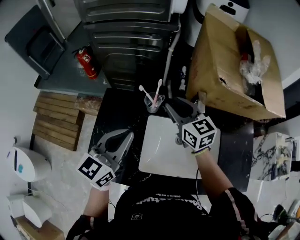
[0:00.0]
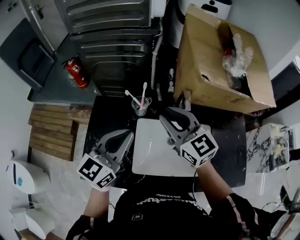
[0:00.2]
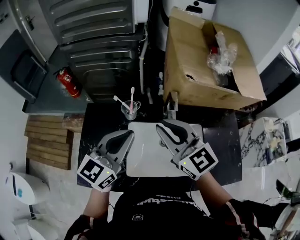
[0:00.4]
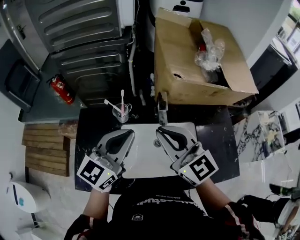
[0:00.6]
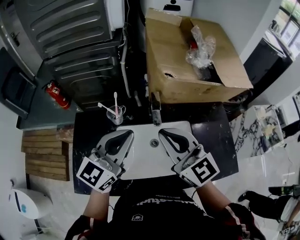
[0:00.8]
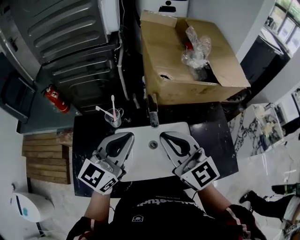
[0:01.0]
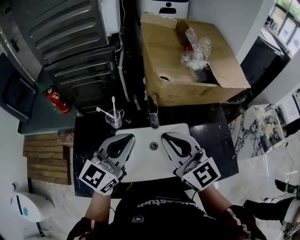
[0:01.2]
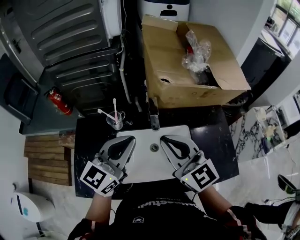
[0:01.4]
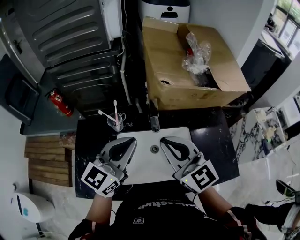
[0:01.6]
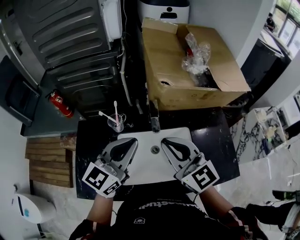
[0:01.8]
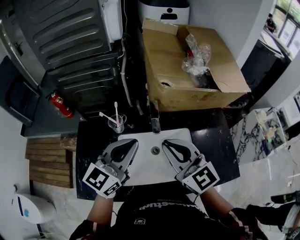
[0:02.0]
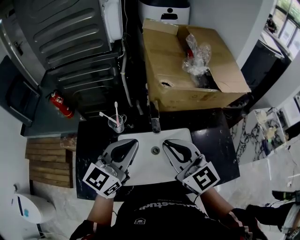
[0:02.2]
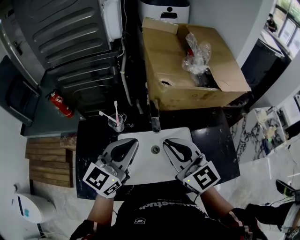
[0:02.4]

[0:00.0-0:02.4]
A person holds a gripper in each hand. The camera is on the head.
0:00.0 to 0:01.2: The left gripper shifts about 15 cm to the right, and changes its angle by roughly 20 degrees. Meanwhile the right gripper shifts approximately 25 cm backward, to the right and upward, and closes.
0:01.2 to 0:02.4: The grippers stay close to where they were, moving slightly.

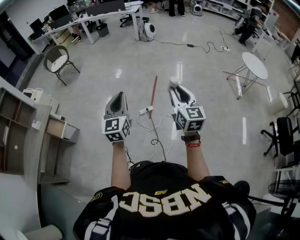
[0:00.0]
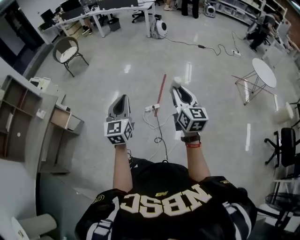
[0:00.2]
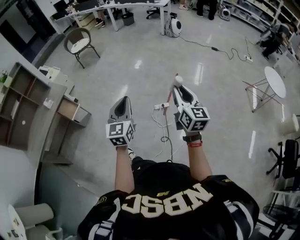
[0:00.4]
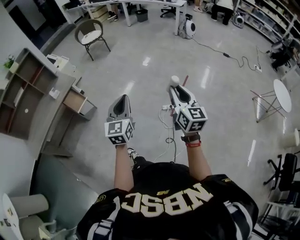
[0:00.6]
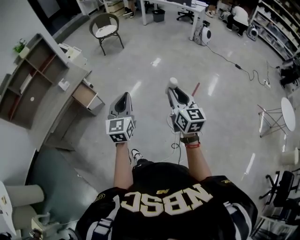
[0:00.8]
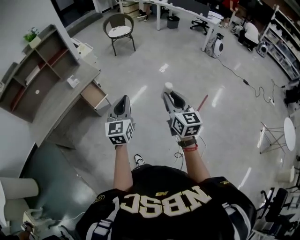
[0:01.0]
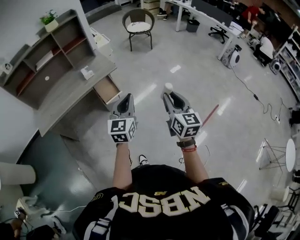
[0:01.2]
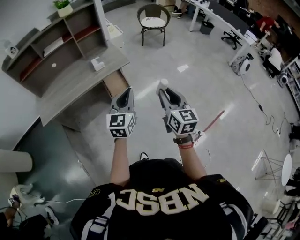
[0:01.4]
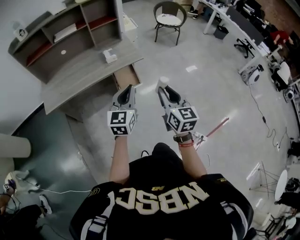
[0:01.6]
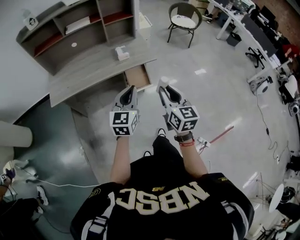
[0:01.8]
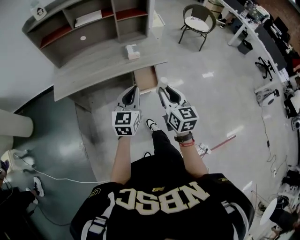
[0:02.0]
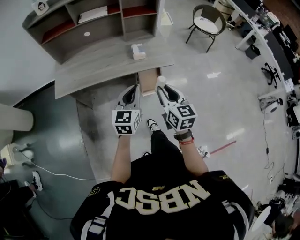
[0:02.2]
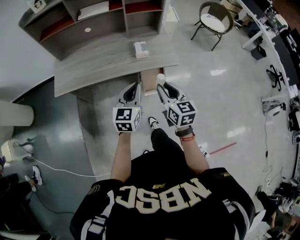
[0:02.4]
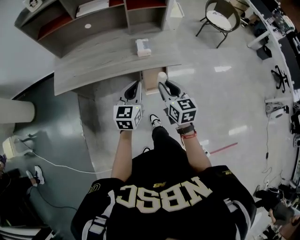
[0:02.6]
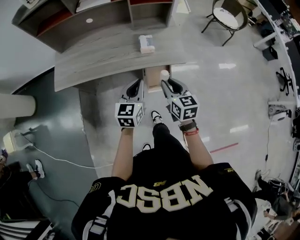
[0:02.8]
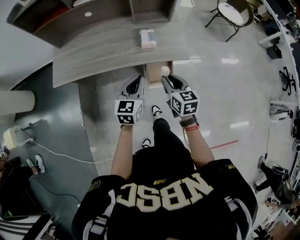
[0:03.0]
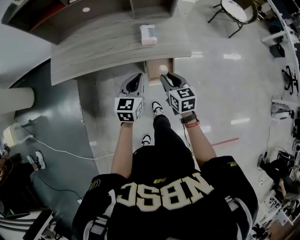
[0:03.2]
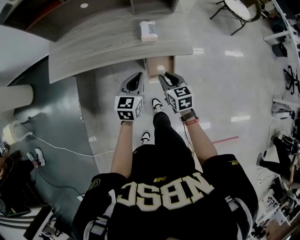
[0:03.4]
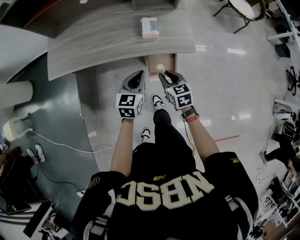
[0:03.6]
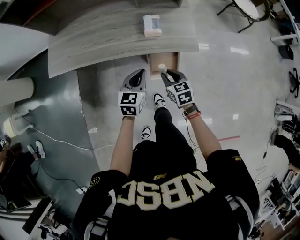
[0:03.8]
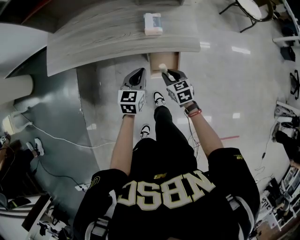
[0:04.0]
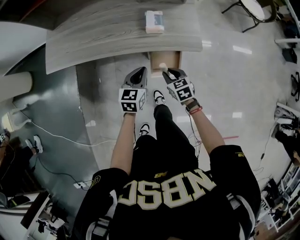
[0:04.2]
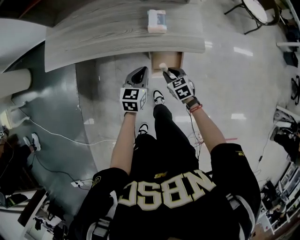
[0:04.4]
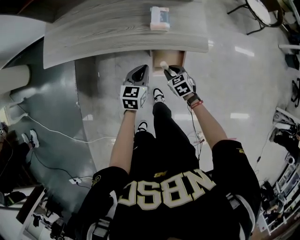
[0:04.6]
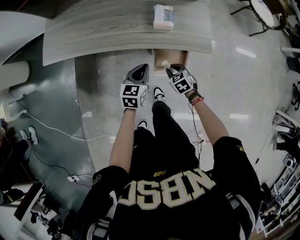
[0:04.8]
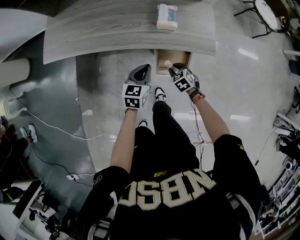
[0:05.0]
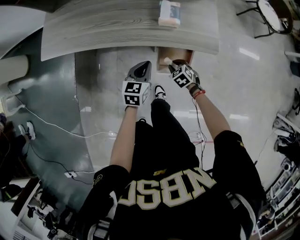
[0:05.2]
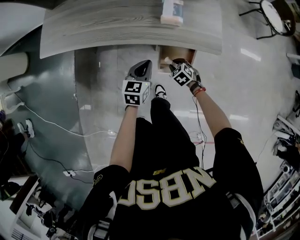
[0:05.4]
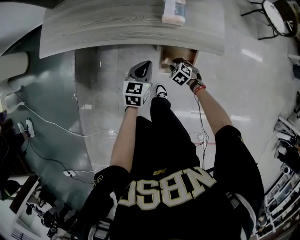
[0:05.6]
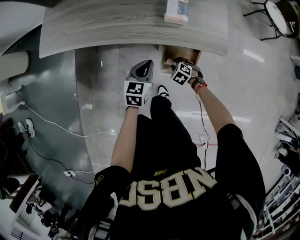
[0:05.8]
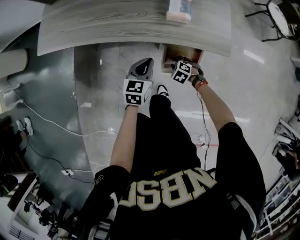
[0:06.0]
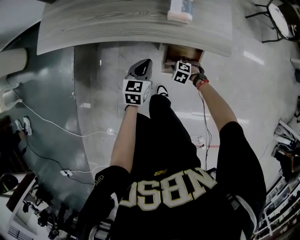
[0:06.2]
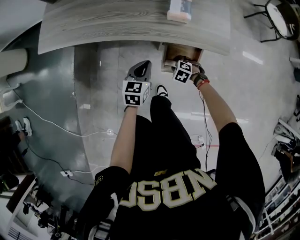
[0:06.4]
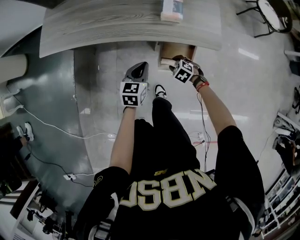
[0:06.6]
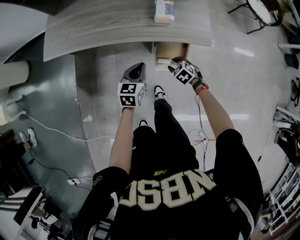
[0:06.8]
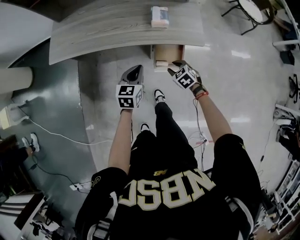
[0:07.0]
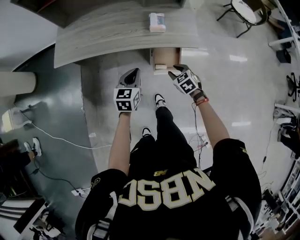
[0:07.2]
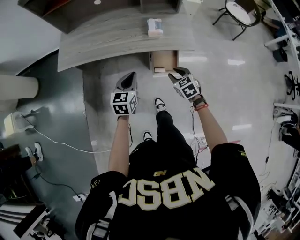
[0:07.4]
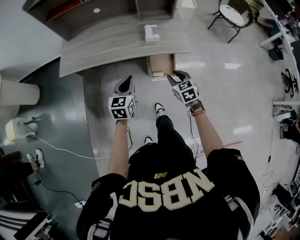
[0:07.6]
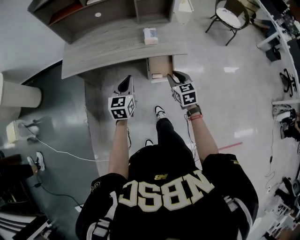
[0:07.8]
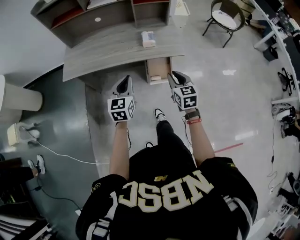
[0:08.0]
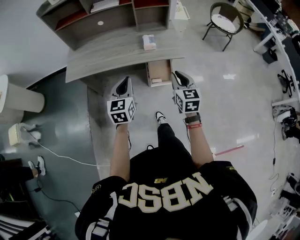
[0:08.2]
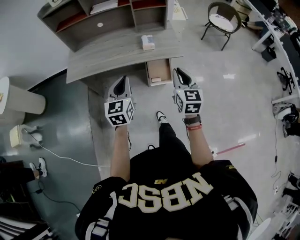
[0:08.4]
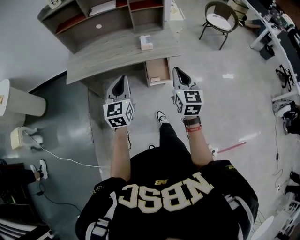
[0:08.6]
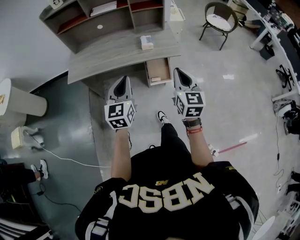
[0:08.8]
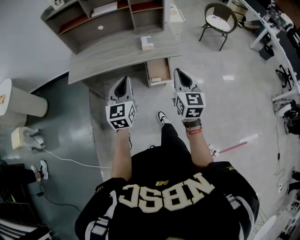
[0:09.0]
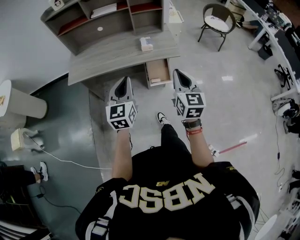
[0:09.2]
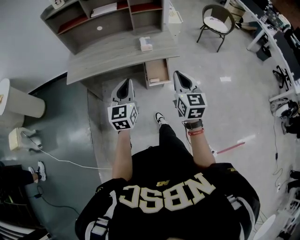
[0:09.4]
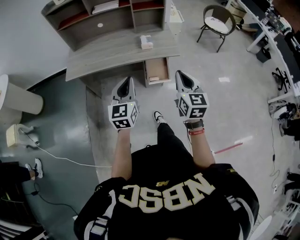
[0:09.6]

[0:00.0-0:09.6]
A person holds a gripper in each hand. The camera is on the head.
0:00.0 to 0:01.6: Both grippers are carried about 60 cm. The left gripper swivels roughly 40 degrees. Meanwhile the right gripper changes its angle by about 50 degrees.
0:01.6 to 0:03.2: Both grippers move forward and downward, some 35 cm. The right gripper turns by some 40 degrees. Meanwhile the left gripper turns by some 30 degrees.
0:03.2 to 0:04.8: The left gripper is displaced downward by approximately 15 cm. The right gripper goes approximately 25 cm downward, and swivels about 40 degrees.
0:04.8 to 0:06.4: The right gripper moves downward, some 15 cm, and swivels about 40 degrees; the left gripper goes roughly 10 cm downward.
0:06.4 to 0:08.0: The grippers both shift upward by roughly 35 cm. The left gripper rotates roughly 20 degrees. The right gripper angles its fingers upward, by about 50 degrees.
0:08.0 to 0:09.6: The right gripper shifts about 15 cm upward and backward, while the left gripper goes some 15 cm backward and upward.

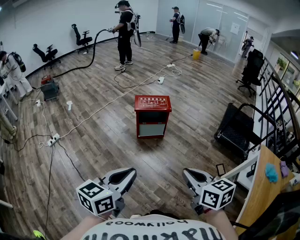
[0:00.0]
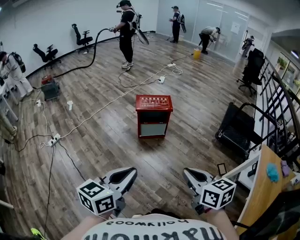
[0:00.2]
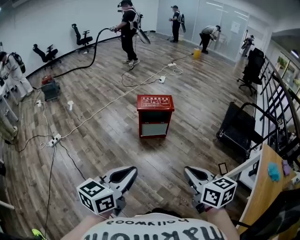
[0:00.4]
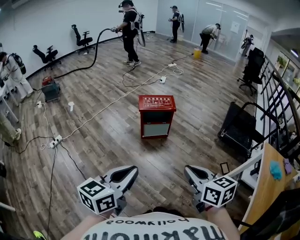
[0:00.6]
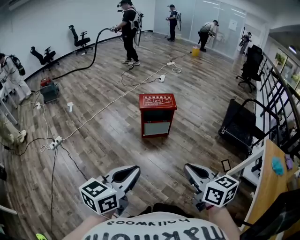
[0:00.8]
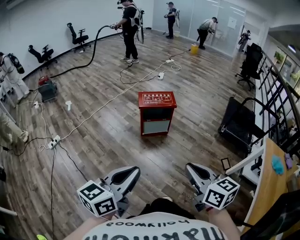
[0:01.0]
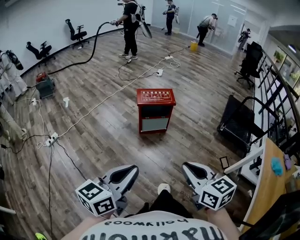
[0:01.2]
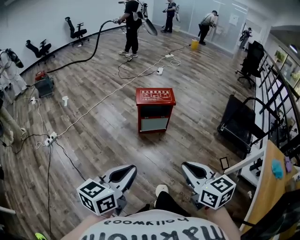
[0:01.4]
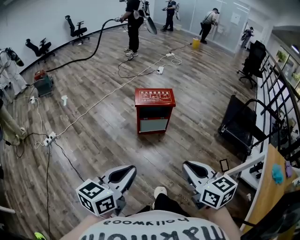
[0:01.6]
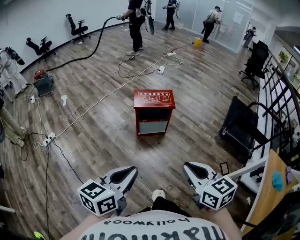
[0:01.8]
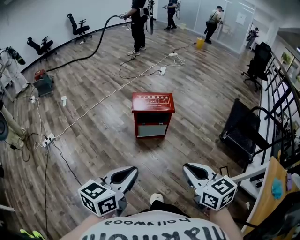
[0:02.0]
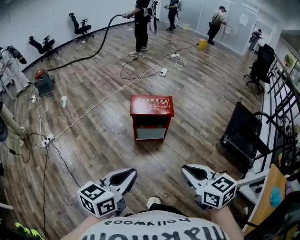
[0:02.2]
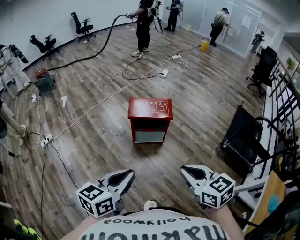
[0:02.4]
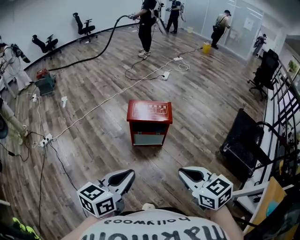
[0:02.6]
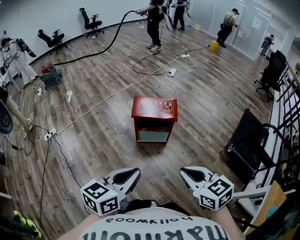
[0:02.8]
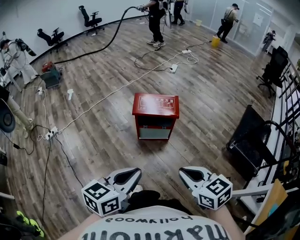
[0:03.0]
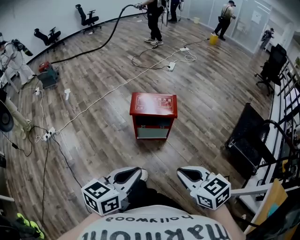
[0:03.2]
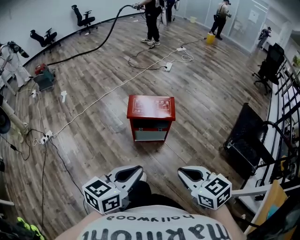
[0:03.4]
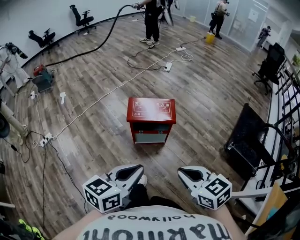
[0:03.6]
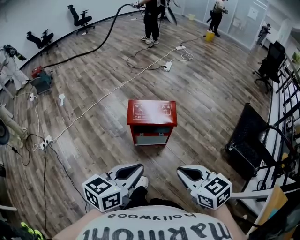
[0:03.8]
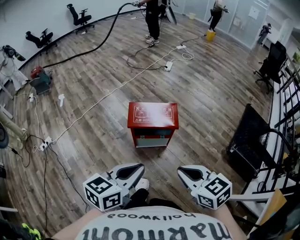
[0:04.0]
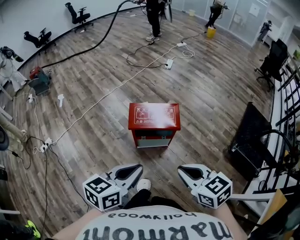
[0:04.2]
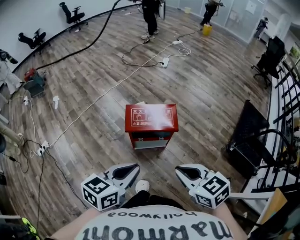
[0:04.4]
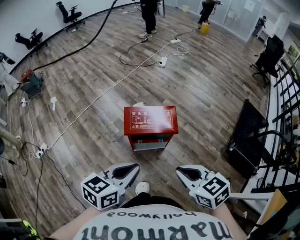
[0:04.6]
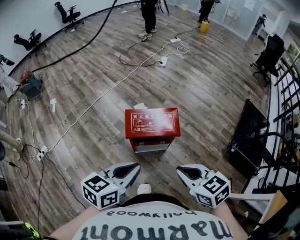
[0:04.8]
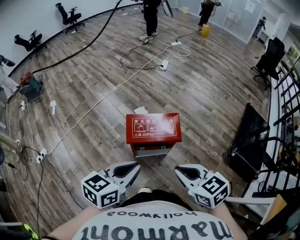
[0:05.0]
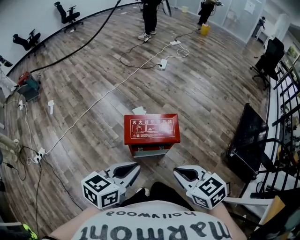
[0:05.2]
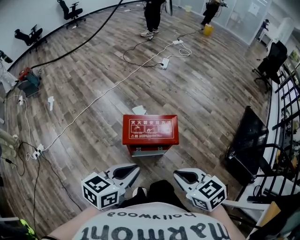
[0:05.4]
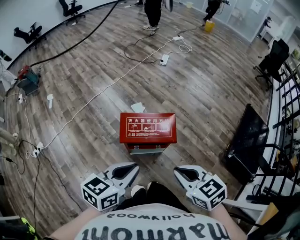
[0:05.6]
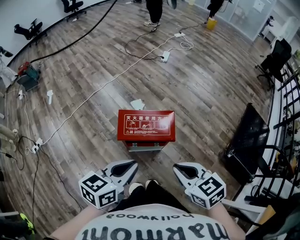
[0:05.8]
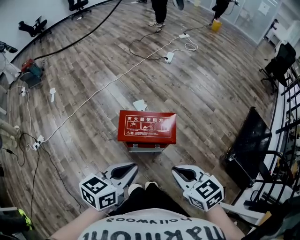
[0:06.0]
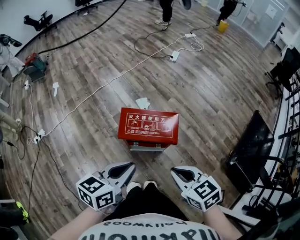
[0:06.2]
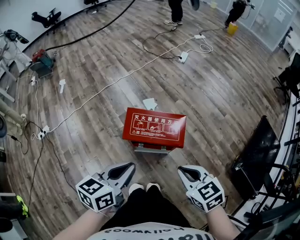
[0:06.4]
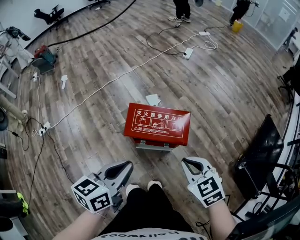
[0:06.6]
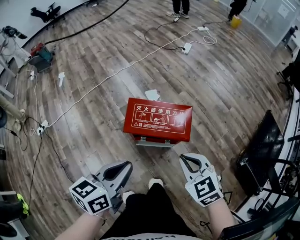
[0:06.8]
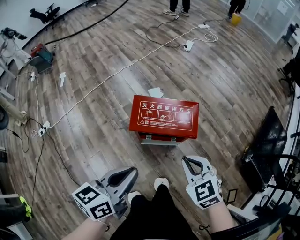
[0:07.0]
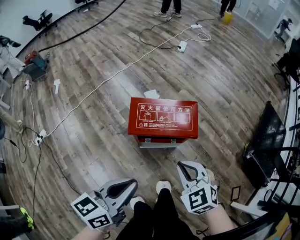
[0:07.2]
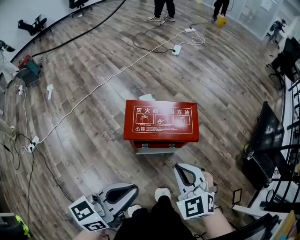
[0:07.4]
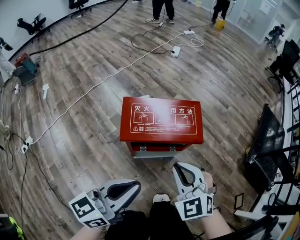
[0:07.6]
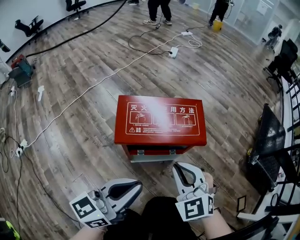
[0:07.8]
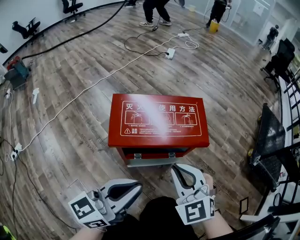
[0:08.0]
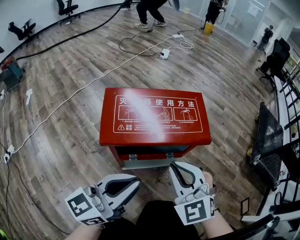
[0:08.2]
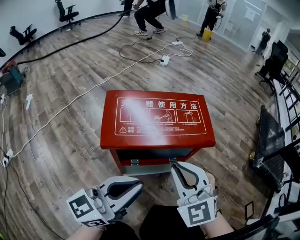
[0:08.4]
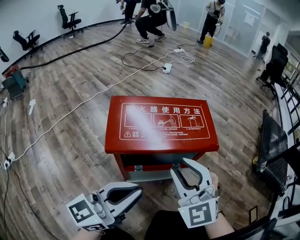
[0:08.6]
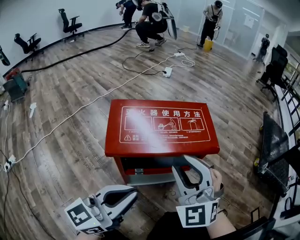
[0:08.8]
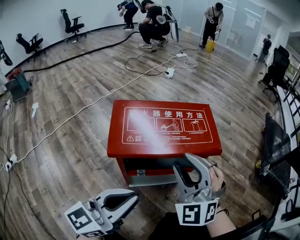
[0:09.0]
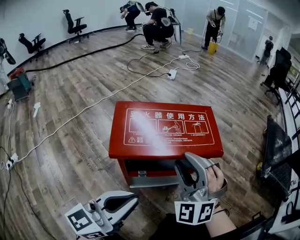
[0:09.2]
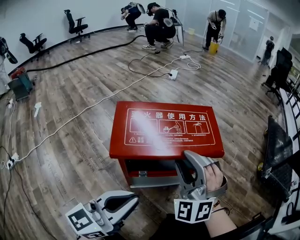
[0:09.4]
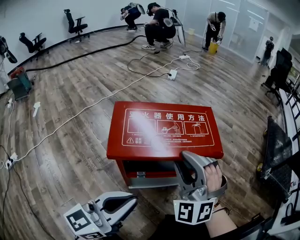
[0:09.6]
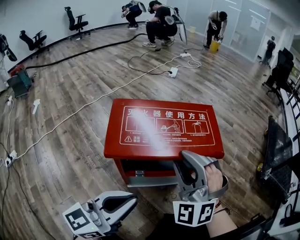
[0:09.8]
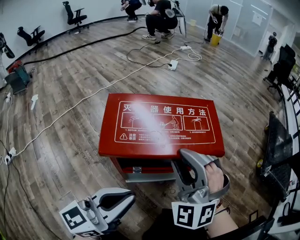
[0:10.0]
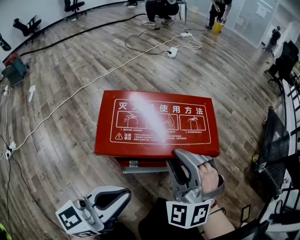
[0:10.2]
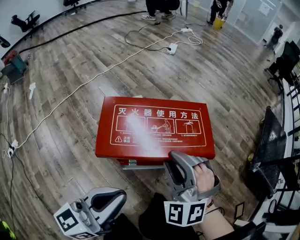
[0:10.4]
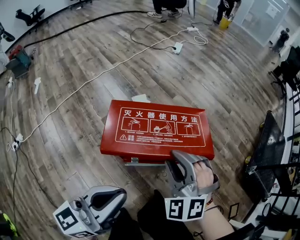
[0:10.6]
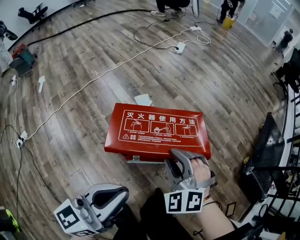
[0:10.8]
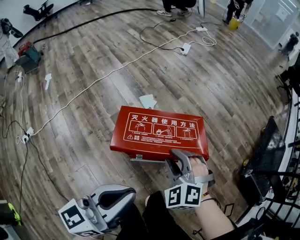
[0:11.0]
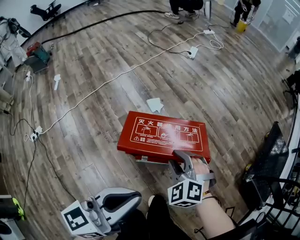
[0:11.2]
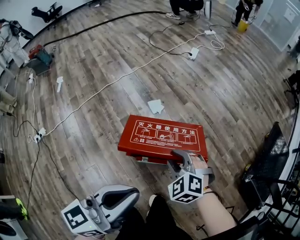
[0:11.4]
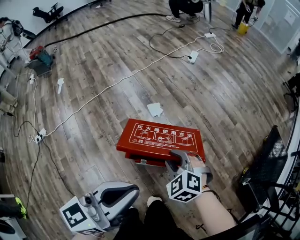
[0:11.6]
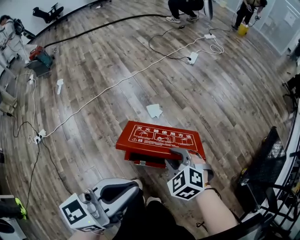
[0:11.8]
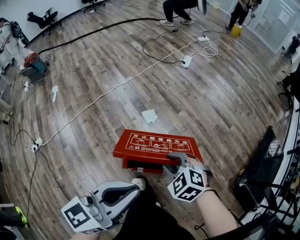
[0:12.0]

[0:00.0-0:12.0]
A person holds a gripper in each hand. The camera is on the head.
0:00.0 to 0:01.6: The left gripper heads forward, covering roughly 10 cm. The right gripper heads forward and to the left, covering some 10 cm.
0:01.6 to 0:03.0: Both grippers move forward and to the right, some 20 cm. The right gripper rotates about 20 degrees.
0:03.0 to 0:04.4: Both grippers travel together forward, roughly 20 cm.
0:04.4 to 0:06.0: Both grippers travel together forward, some 10 cm.
0:06.0 to 0:07.6: Both grippers travel together downward, some 20 cm. The left gripper changes its angle by roughly 20 degrees; the right gripper rotates about 40 degrees.
0:07.6 to 0:09.0: The right gripper is displaced downward and forward by roughly 10 cm, turns by roughly 30 degrees, and opens, while the left gripper heads downward, covering approximately 15 cm.
0:09.0 to 0:10.4: The left gripper travels upward by some 10 cm.
0:10.4 to 0:12.0: The right gripper moves upward and forward, approximately 15 cm, and angles its fingers downward, by some 30 degrees. The left gripper travels upward by about 25 cm.
